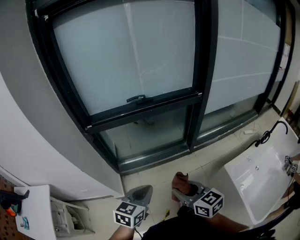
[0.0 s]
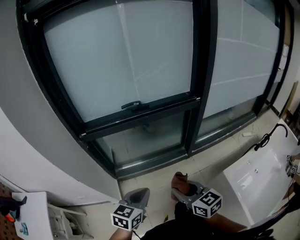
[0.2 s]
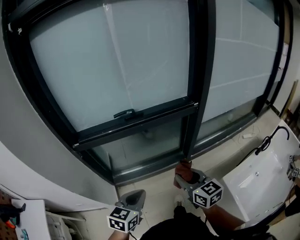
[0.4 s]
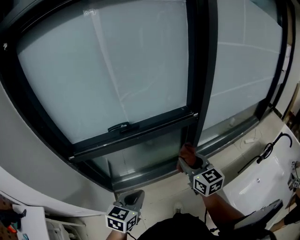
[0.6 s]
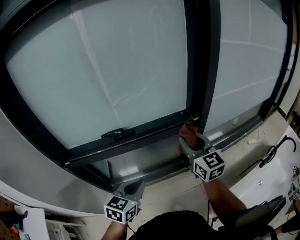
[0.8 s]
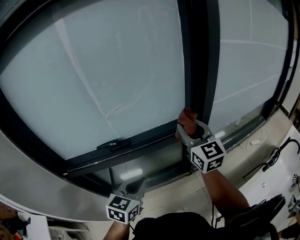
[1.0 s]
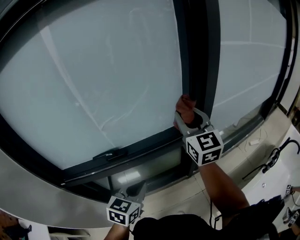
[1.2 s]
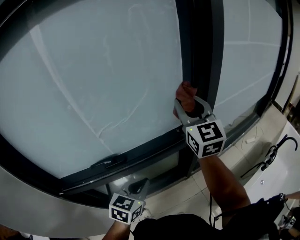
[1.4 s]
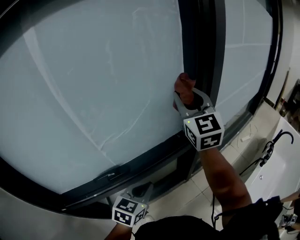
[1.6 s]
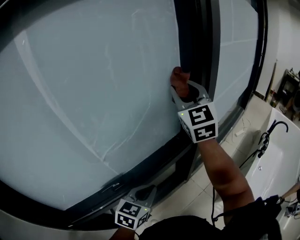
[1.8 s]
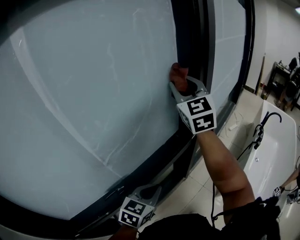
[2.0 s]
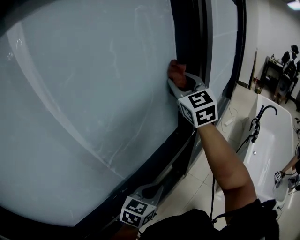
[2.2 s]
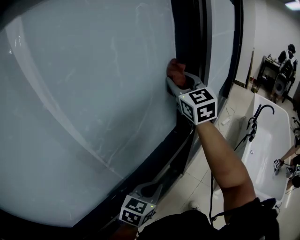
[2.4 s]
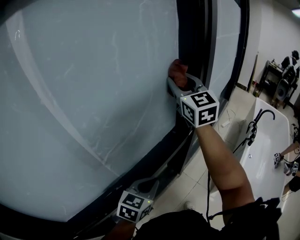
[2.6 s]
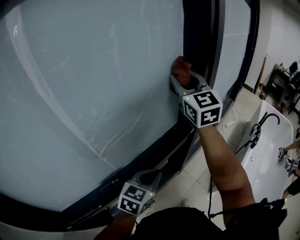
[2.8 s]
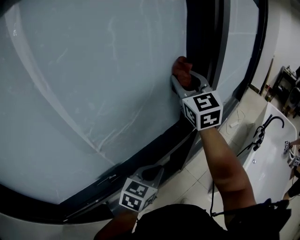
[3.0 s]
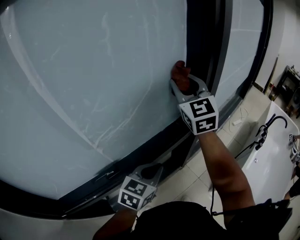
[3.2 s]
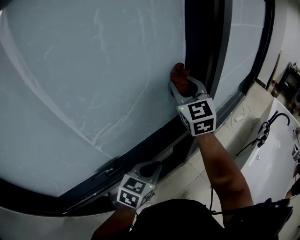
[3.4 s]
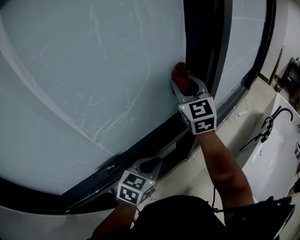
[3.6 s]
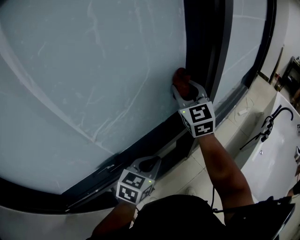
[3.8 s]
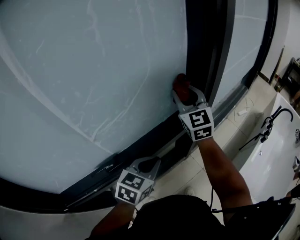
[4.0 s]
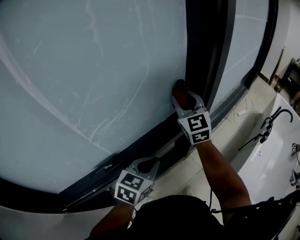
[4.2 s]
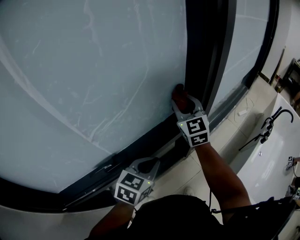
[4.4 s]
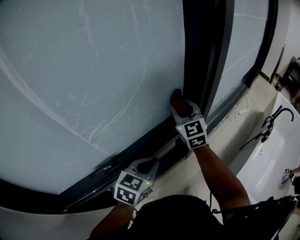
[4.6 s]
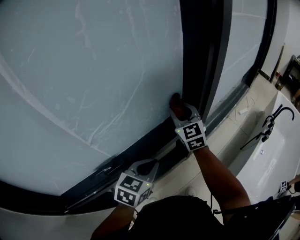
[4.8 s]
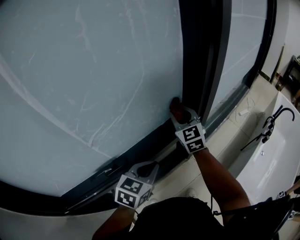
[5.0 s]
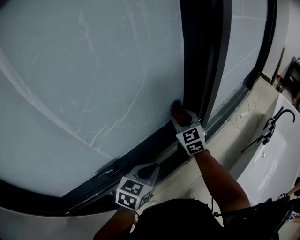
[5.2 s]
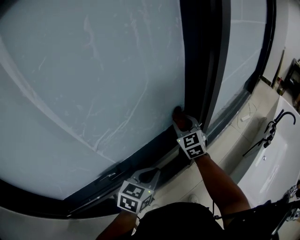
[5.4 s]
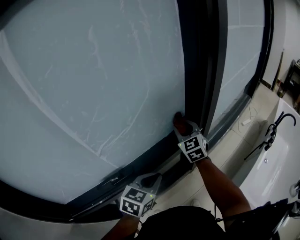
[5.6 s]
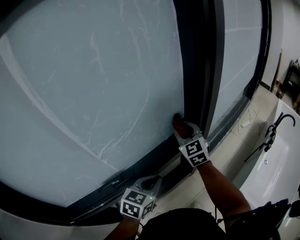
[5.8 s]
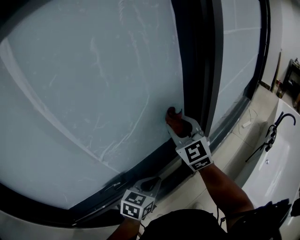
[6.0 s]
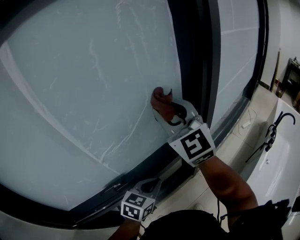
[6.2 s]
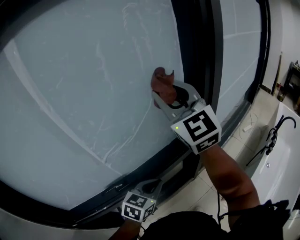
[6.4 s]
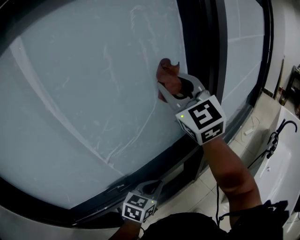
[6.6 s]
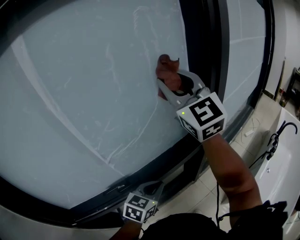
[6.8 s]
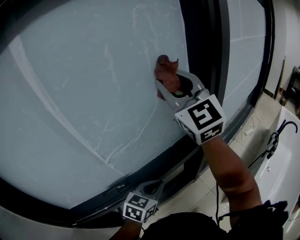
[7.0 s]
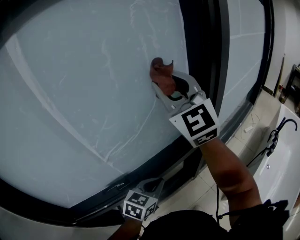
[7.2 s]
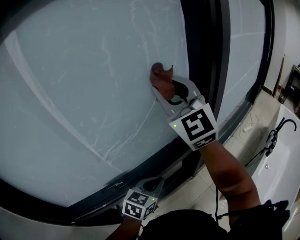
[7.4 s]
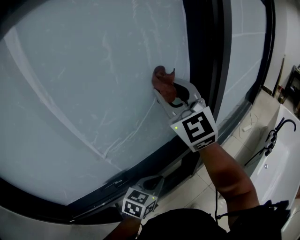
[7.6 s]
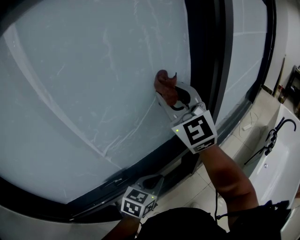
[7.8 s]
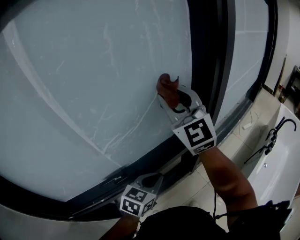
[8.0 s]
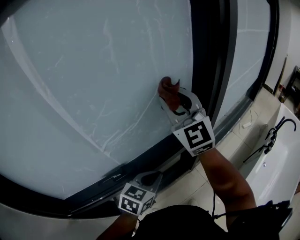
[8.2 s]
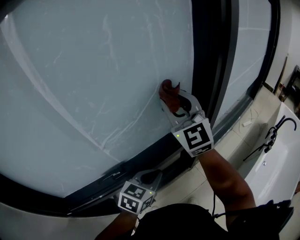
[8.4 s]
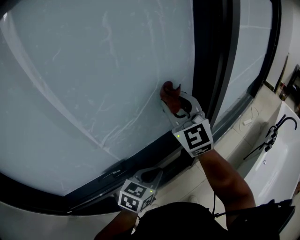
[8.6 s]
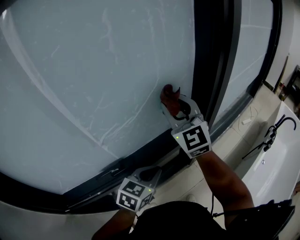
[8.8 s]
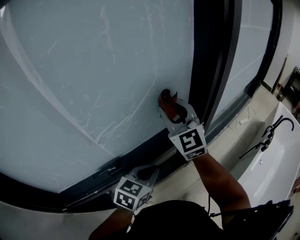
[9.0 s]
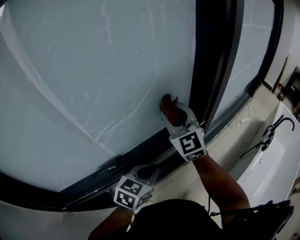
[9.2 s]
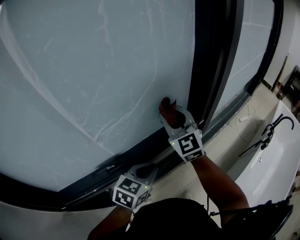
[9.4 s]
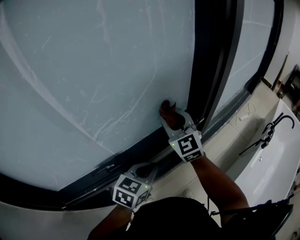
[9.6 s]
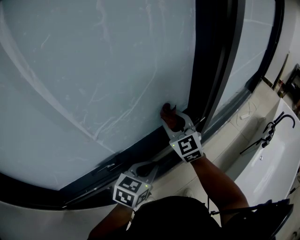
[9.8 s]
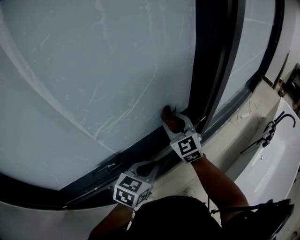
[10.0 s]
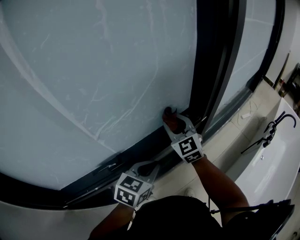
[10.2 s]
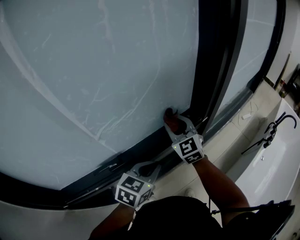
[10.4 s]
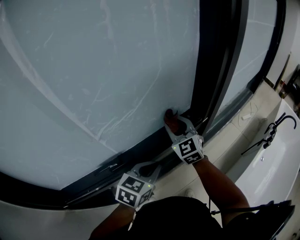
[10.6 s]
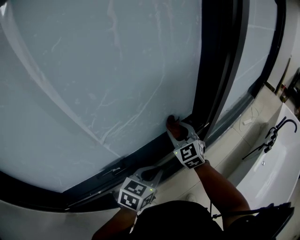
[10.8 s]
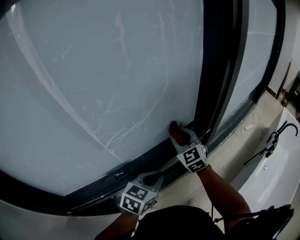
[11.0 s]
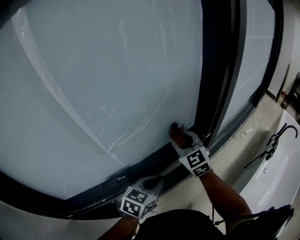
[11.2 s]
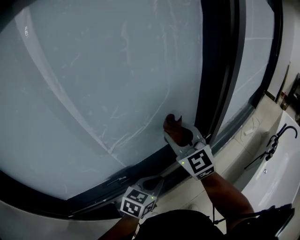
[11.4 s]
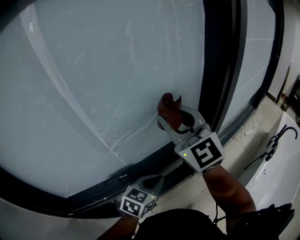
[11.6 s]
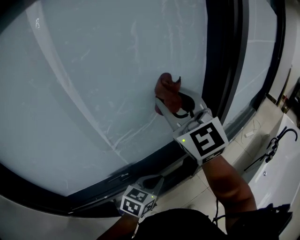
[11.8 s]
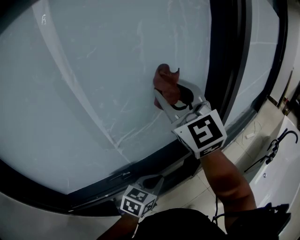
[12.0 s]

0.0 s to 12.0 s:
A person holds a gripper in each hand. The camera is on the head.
0.0 to 1.6 s: The two grippers travel together, about 50 cm. The right gripper changes its angle by approximately 60 degrees.
1.6 to 3.0 s: The left gripper moves forward, roughly 5 cm.
3.0 to 4.4 s: The right gripper moves downward, approximately 20 cm.
4.4 to 6.0 s: The right gripper travels upward and backward by roughly 10 cm.
6.0 to 7.6 s: The right gripper heads upward, covering approximately 15 cm.
7.6 to 9.0 s: The right gripper moves downward, approximately 15 cm.
9.0 to 10.4 s: The right gripper is displaced downward by some 15 cm.
10.4 to 12.0 s: The right gripper is displaced upward by about 30 cm, and swivels about 30 degrees.

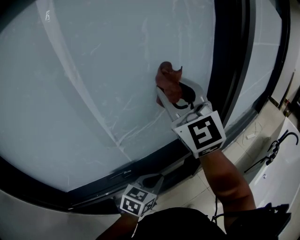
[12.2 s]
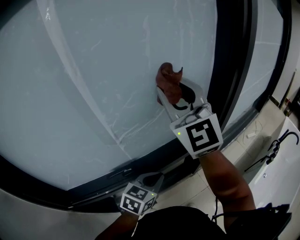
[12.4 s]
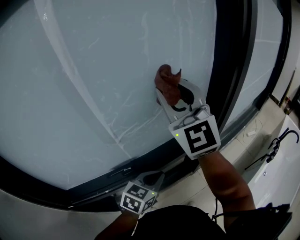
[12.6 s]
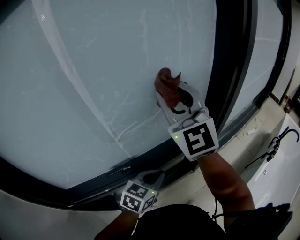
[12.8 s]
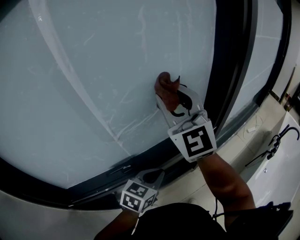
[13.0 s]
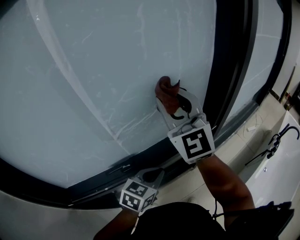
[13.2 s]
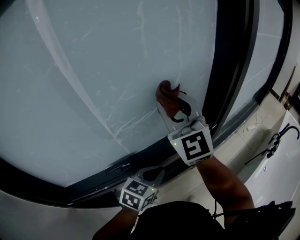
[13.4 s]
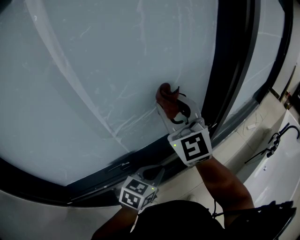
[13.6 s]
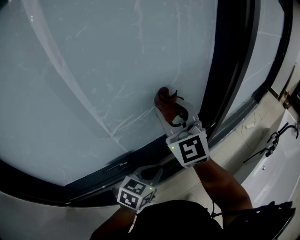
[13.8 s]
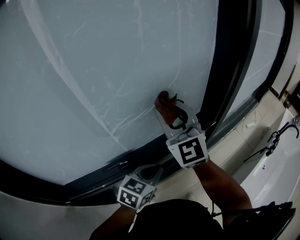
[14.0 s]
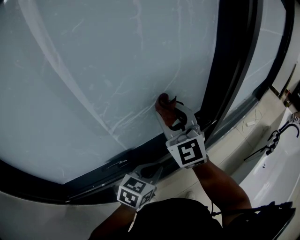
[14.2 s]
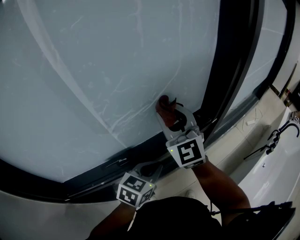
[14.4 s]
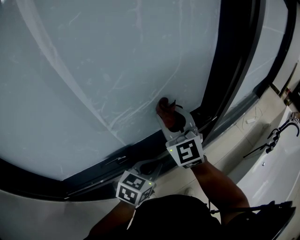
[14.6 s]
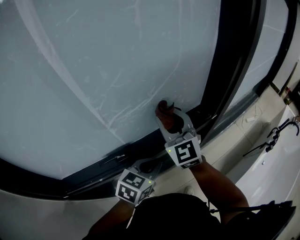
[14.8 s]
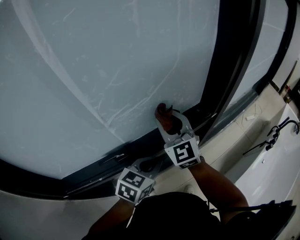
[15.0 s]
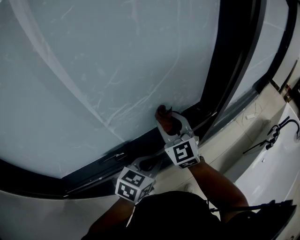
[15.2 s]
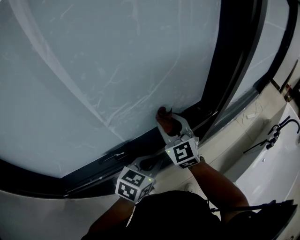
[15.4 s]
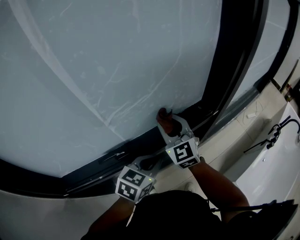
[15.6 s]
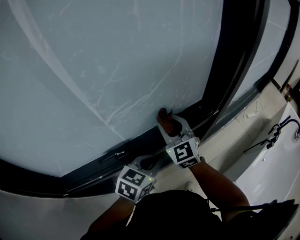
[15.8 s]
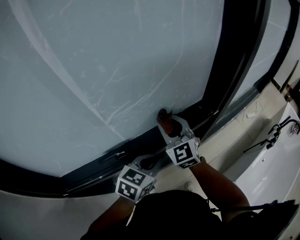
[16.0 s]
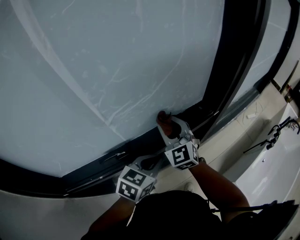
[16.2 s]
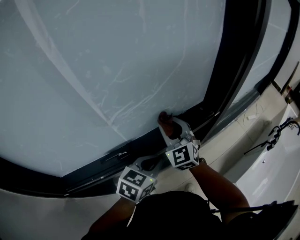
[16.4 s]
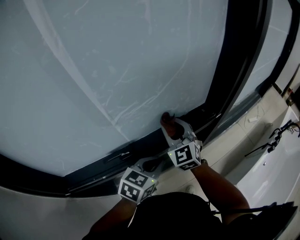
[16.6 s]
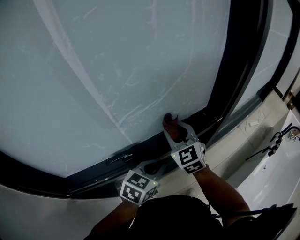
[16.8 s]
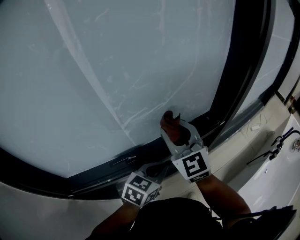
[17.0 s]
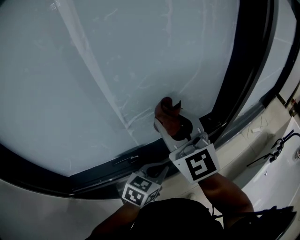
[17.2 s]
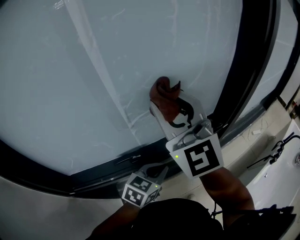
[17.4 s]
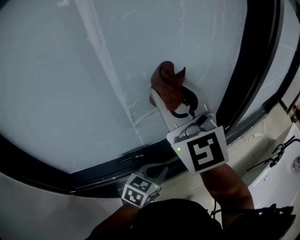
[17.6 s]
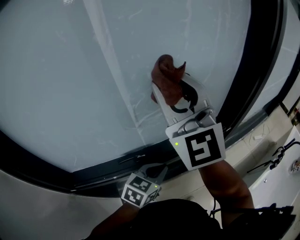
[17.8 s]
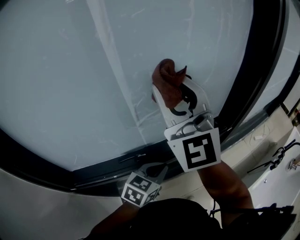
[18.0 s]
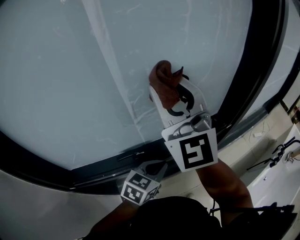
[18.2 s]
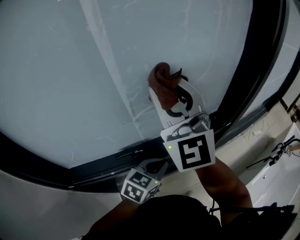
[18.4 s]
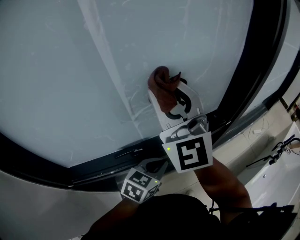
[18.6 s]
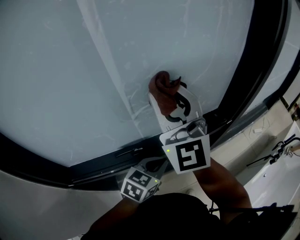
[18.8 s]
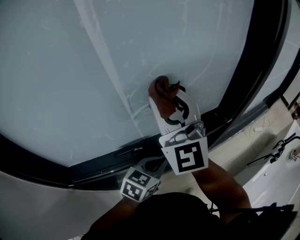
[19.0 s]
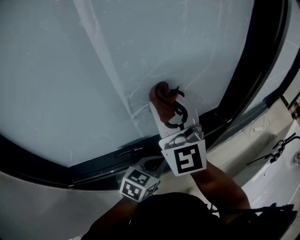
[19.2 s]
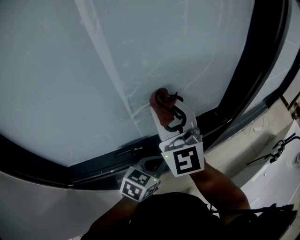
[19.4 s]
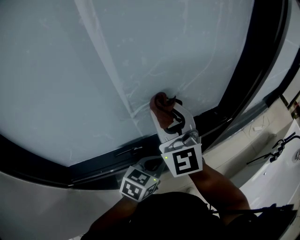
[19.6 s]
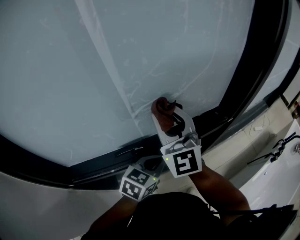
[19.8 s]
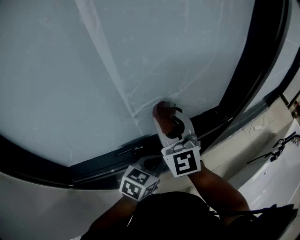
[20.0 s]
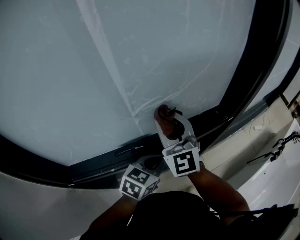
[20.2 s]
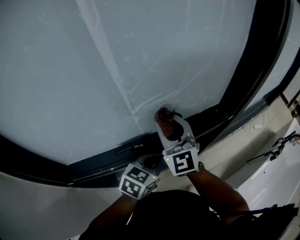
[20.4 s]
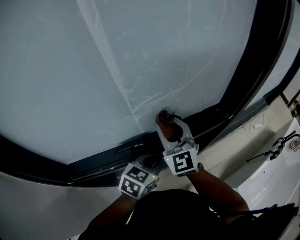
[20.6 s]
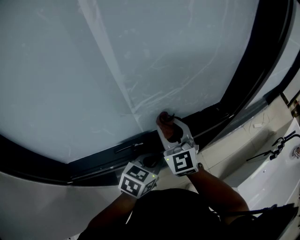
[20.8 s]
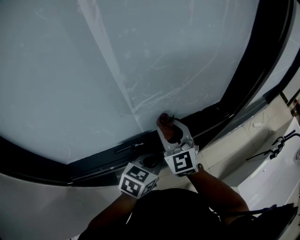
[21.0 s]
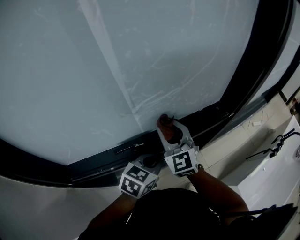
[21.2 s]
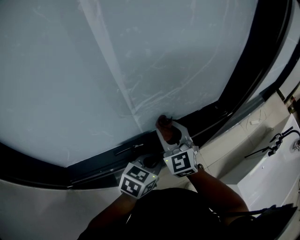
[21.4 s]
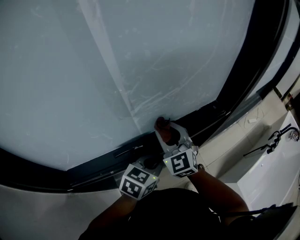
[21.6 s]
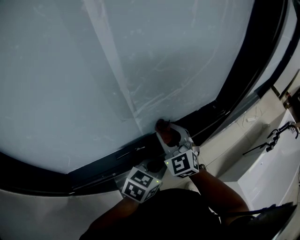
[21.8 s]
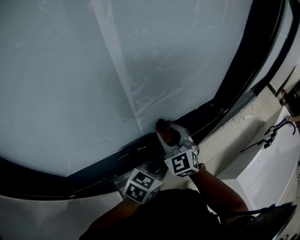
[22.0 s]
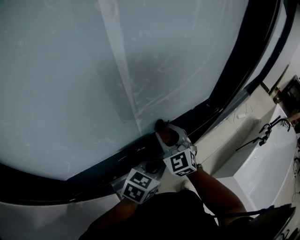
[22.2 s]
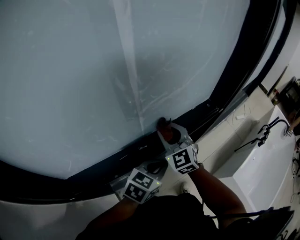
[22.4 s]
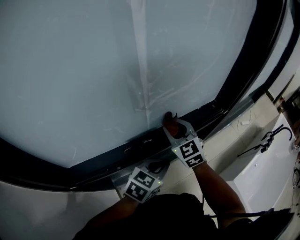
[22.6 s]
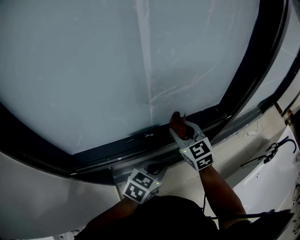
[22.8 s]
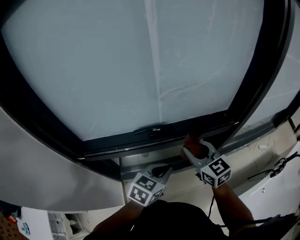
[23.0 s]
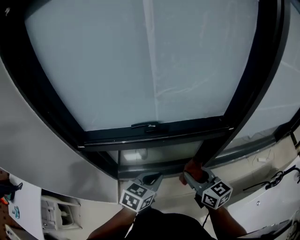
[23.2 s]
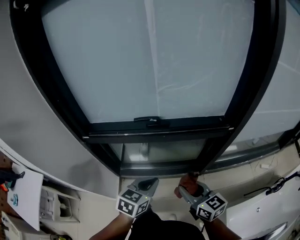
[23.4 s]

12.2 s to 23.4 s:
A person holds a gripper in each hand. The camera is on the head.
12.2 to 13.8 s: The right gripper is displaced downward by roughly 10 cm.
13.8 to 15.4 s: The right gripper moves downward, roughly 15 cm.
15.4 to 17.0 s: The right gripper is displaced upward by roughly 10 cm.
17.0 to 18.6 s: The right gripper heads upward, covering about 15 cm, and turns by about 20 degrees.
18.6 to 20.2 s: The right gripper moves downward, approximately 15 cm.
20.2 to 21.8 s: The right gripper travels downward by about 10 cm.
21.8 to 23.4 s: The left gripper moves roughly 20 cm, and changes its angle by roughly 30 degrees; the right gripper ends up about 30 cm from where it was, and rotates some 50 degrees.

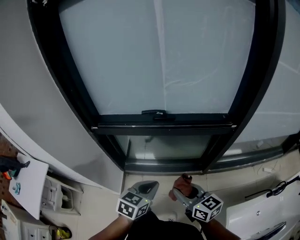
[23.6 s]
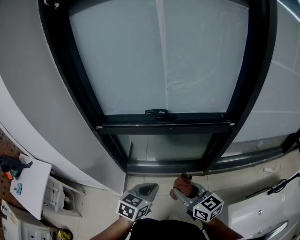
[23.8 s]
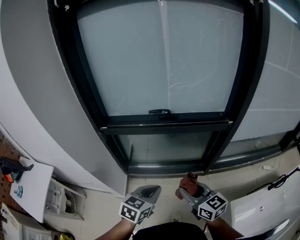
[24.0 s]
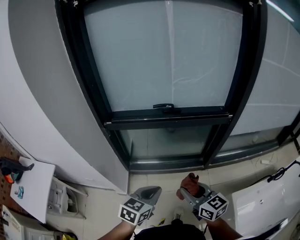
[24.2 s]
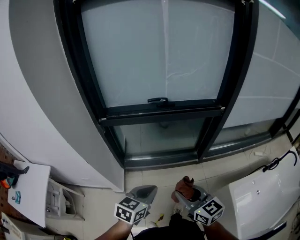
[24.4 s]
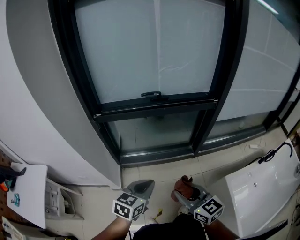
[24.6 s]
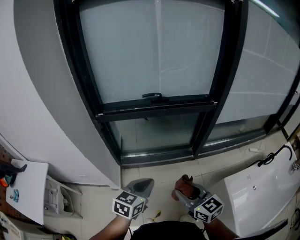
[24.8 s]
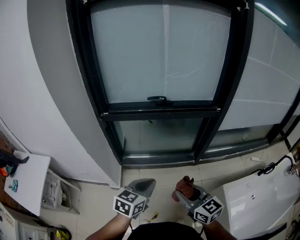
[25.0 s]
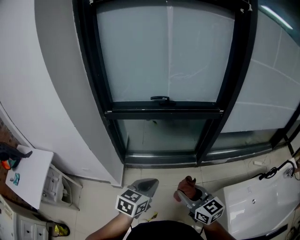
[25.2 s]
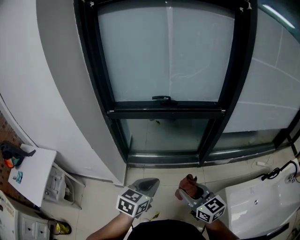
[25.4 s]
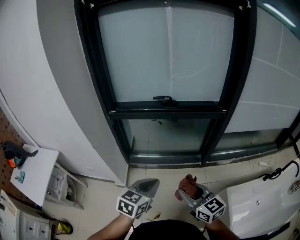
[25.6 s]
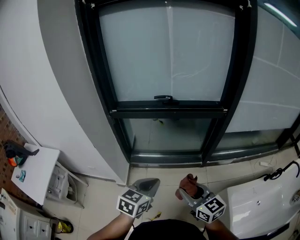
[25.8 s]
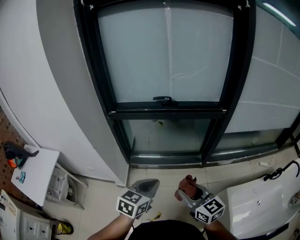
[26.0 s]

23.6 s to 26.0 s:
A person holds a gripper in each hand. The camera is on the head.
23.6 to 24.8 s: The right gripper is displaced backward by some 20 cm. The left gripper is displaced backward and to the left by approximately 20 cm.
24.8 to 26.0 s: The left gripper ends up some 5 cm from where it was.
